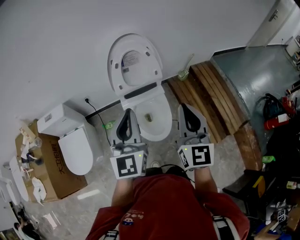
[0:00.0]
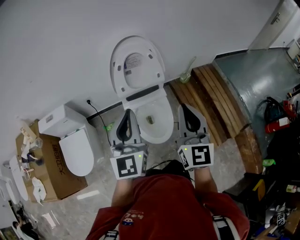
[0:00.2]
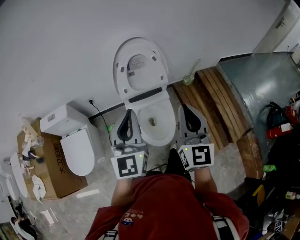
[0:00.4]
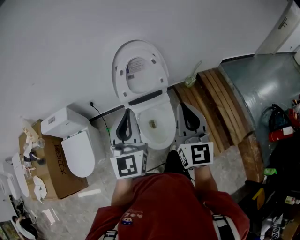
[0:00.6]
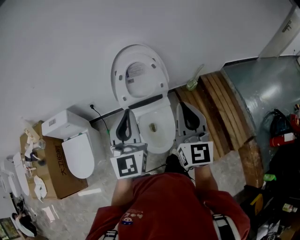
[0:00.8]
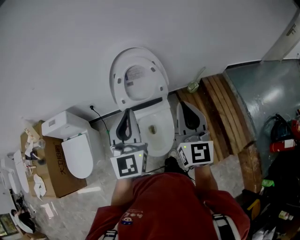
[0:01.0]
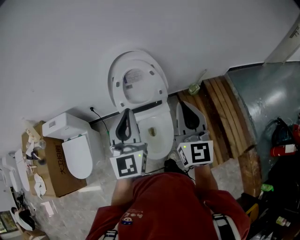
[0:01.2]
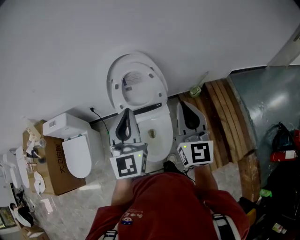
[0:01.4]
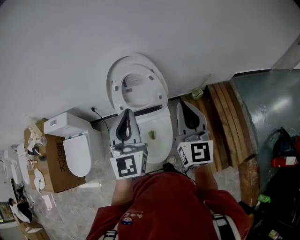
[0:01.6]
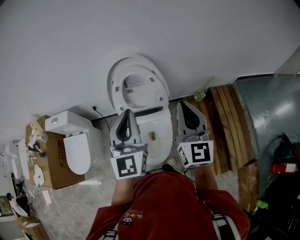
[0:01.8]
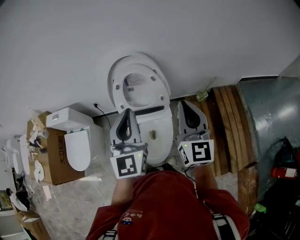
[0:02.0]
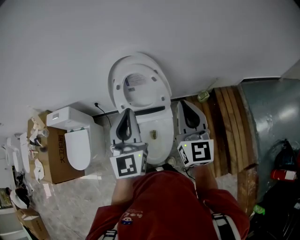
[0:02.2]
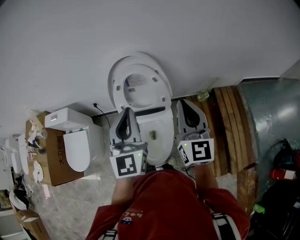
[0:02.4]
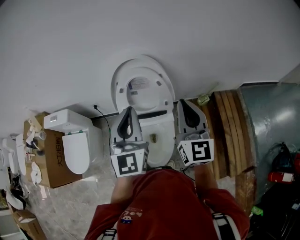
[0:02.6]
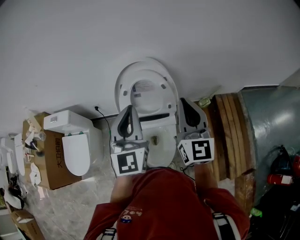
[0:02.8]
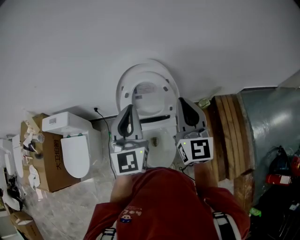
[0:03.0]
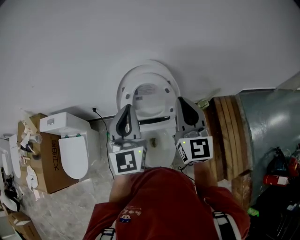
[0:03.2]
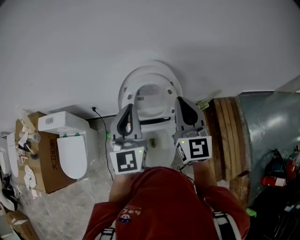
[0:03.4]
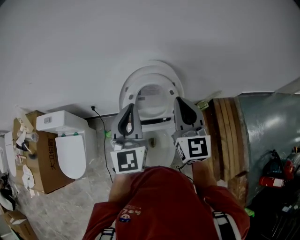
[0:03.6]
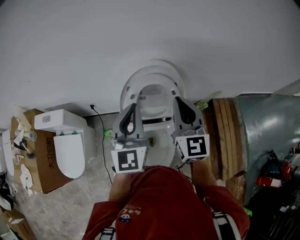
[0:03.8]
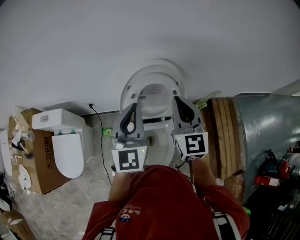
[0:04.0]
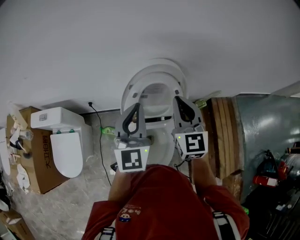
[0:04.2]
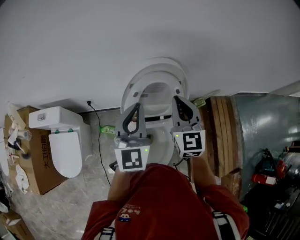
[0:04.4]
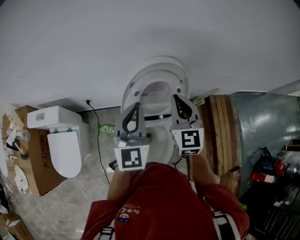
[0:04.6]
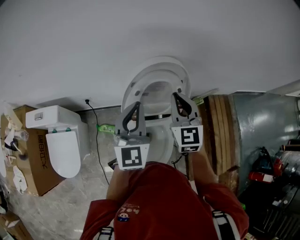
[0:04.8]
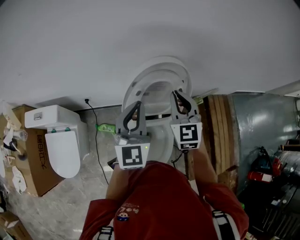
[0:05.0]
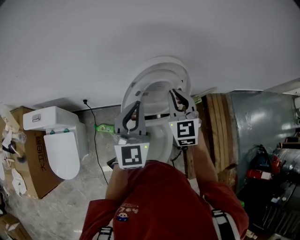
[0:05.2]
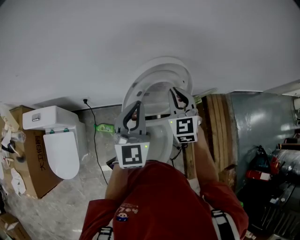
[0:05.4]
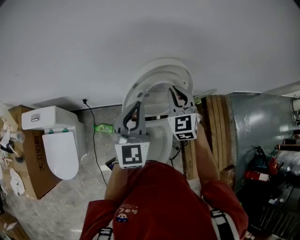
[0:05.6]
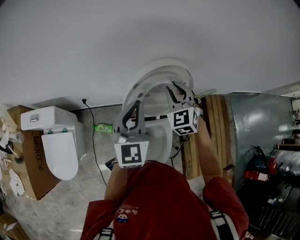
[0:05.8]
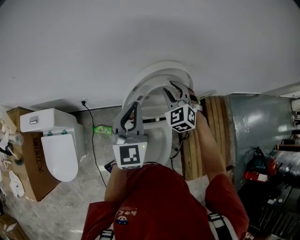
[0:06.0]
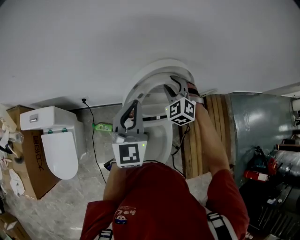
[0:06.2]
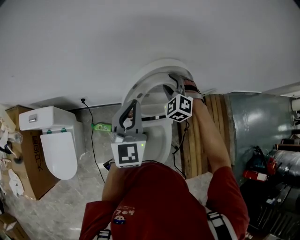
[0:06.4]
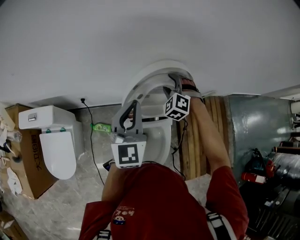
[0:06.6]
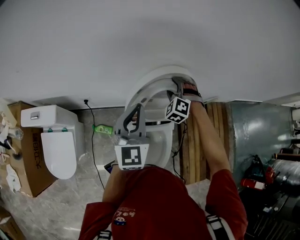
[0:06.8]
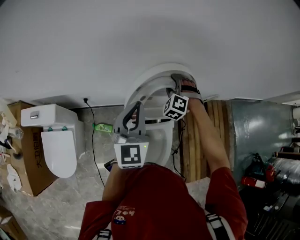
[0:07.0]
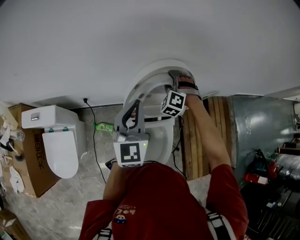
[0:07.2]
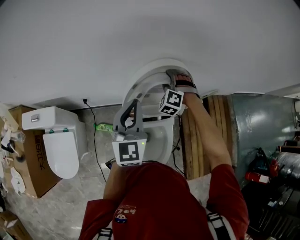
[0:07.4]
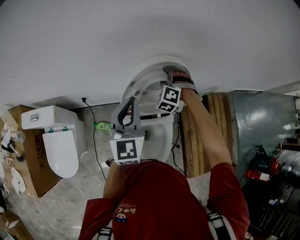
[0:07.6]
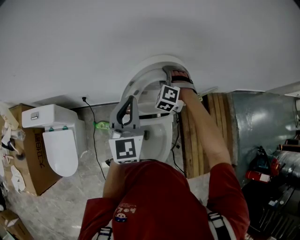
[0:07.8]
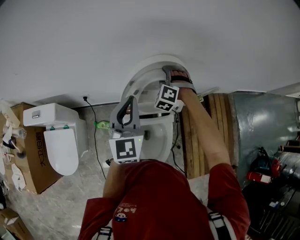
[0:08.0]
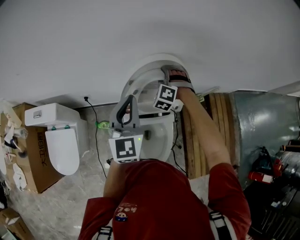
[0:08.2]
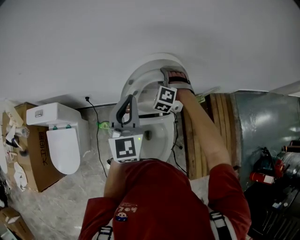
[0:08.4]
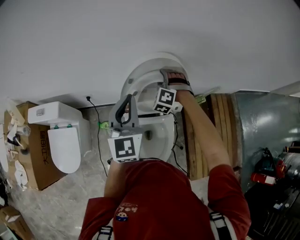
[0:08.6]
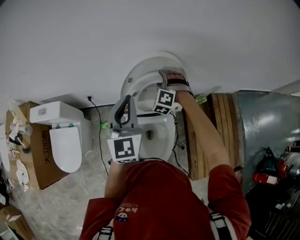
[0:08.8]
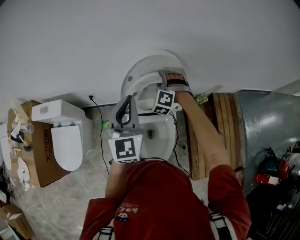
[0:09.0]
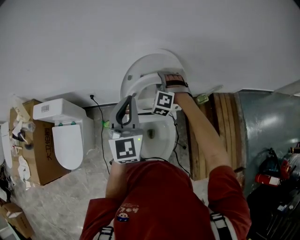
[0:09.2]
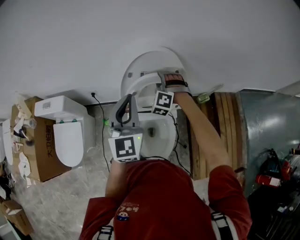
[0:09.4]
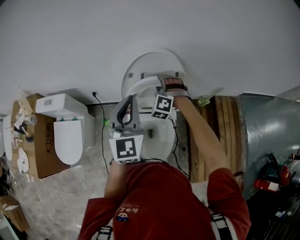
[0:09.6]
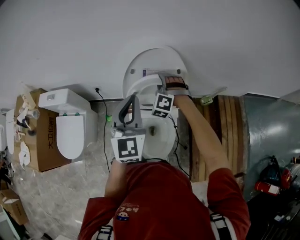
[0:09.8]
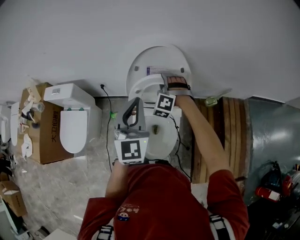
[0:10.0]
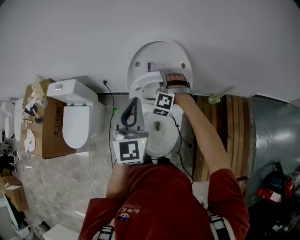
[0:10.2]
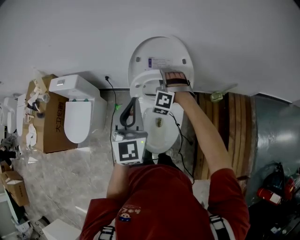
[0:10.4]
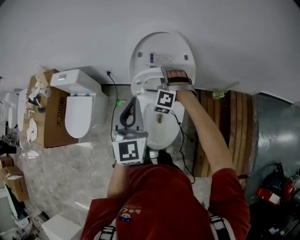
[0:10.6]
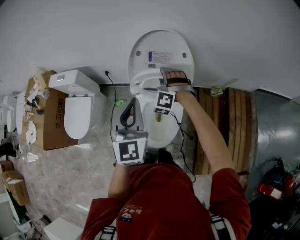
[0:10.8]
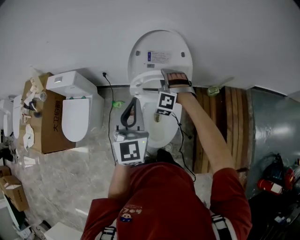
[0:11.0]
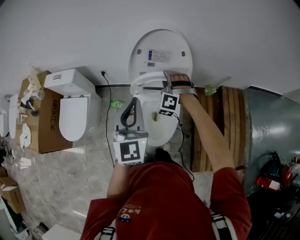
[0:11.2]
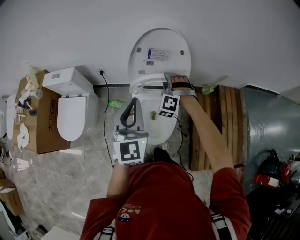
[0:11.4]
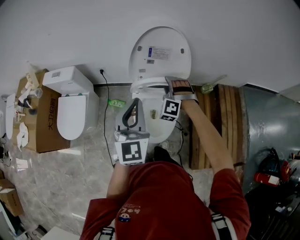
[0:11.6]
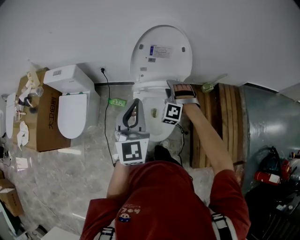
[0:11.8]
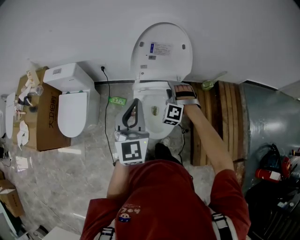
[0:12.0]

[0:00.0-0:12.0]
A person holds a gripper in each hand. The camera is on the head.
0:00.0 to 0:01.6: The two grippers go approximately 20 cm forward and to the right.
0:01.6 to 0:03.0: Both grippers move forward and to the left, about 15 cm.
0:03.0 to 0:04.4: The left gripper is displaced to the left and forward by some 10 cm, while the right gripper moves to the left, forward and downward, some 15 cm.
0:04.4 to 0:06.0: The right gripper goes approximately 15 cm forward and downward, swivels about 40 degrees, and opens its fingers. The left gripper shifts by about 10 cm.
0:06.0 to 0:07.6: The right gripper shifts some 10 cm downward and forward, swivels some 30 degrees, and opens up.
0:07.6 to 0:09.0: The grippers both shift backward by about 5 cm.
0:09.0 to 0:10.4: The left gripper is displaced backward and to the right by approximately 15 cm, while the right gripper travels backward by some 10 cm.
0:10.4 to 0:12.0: The right gripper goes roughly 15 cm backward. The left gripper goes approximately 15 cm backward and to the left.

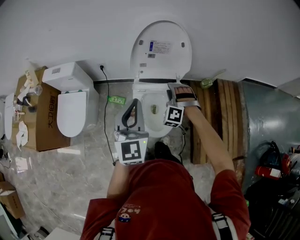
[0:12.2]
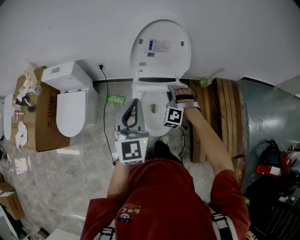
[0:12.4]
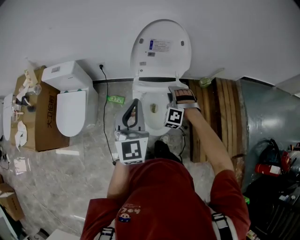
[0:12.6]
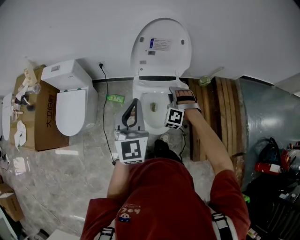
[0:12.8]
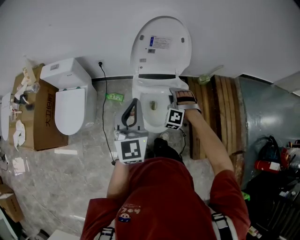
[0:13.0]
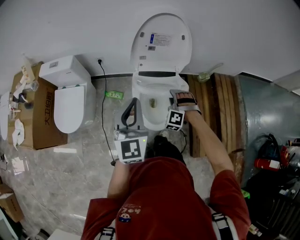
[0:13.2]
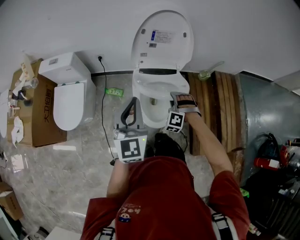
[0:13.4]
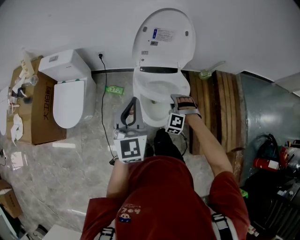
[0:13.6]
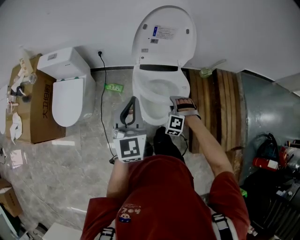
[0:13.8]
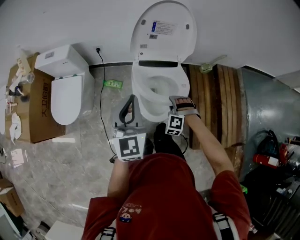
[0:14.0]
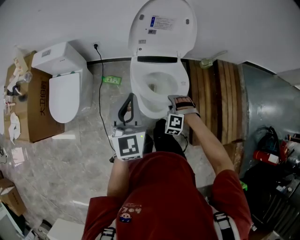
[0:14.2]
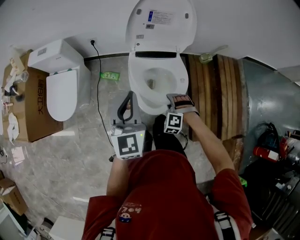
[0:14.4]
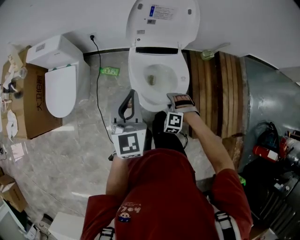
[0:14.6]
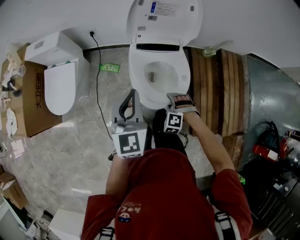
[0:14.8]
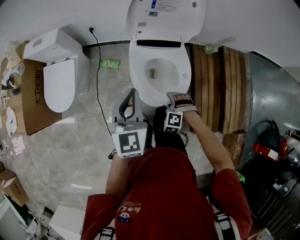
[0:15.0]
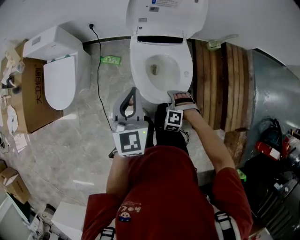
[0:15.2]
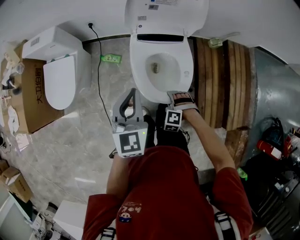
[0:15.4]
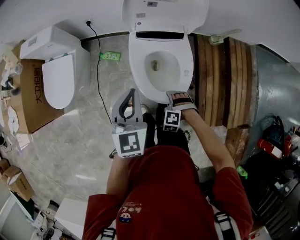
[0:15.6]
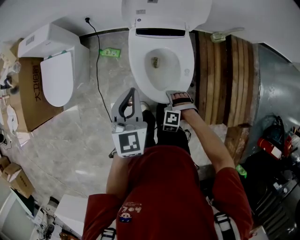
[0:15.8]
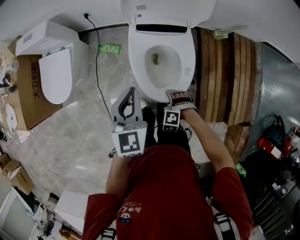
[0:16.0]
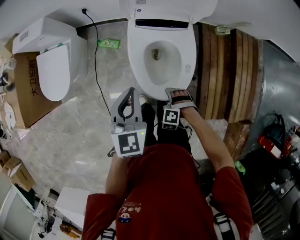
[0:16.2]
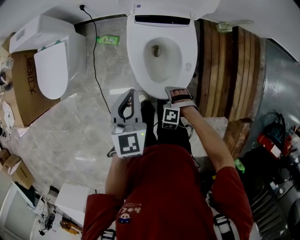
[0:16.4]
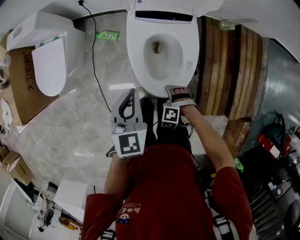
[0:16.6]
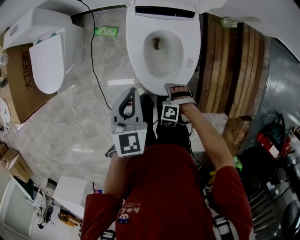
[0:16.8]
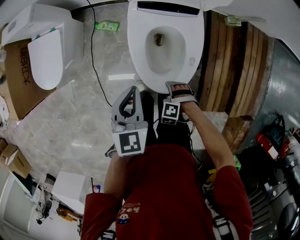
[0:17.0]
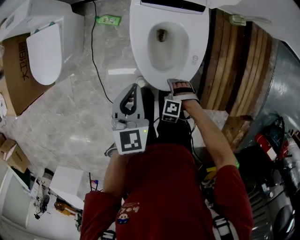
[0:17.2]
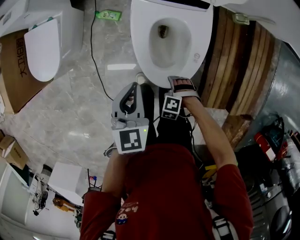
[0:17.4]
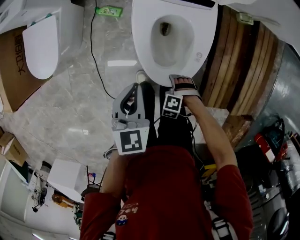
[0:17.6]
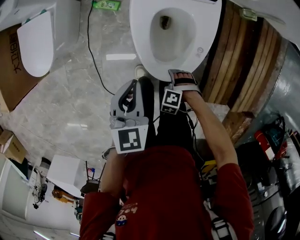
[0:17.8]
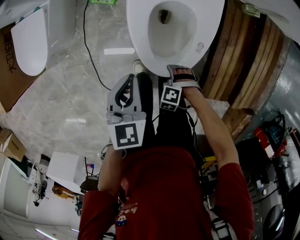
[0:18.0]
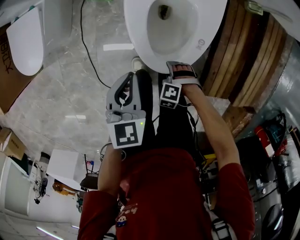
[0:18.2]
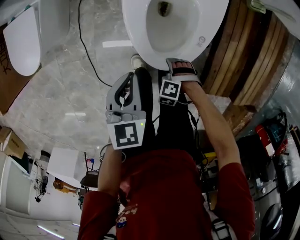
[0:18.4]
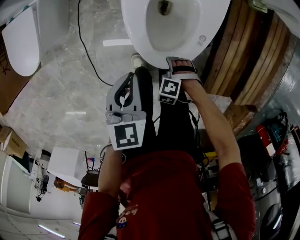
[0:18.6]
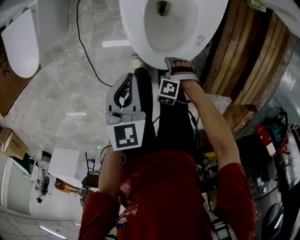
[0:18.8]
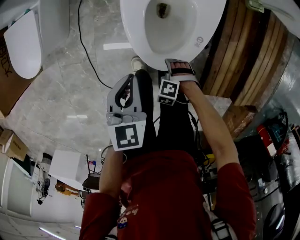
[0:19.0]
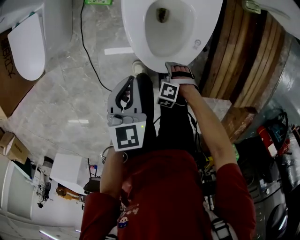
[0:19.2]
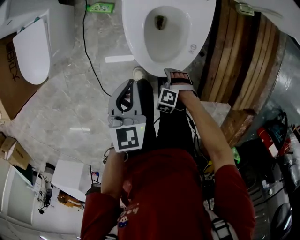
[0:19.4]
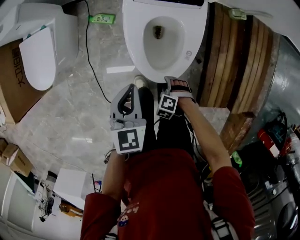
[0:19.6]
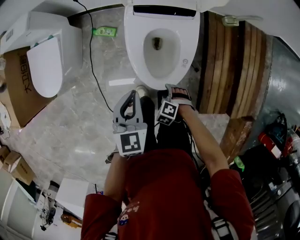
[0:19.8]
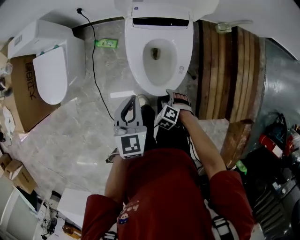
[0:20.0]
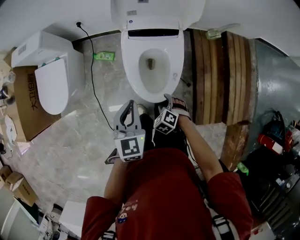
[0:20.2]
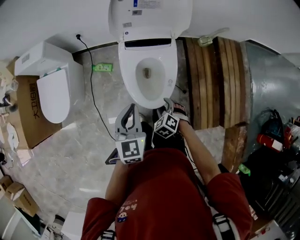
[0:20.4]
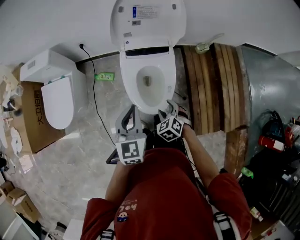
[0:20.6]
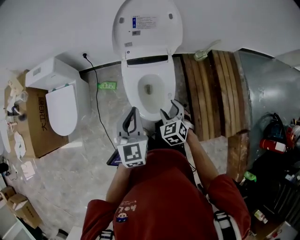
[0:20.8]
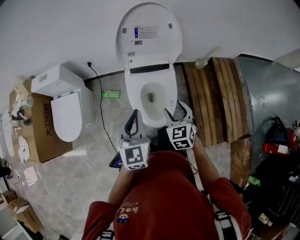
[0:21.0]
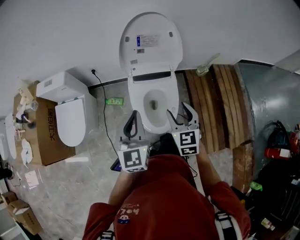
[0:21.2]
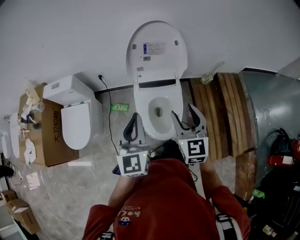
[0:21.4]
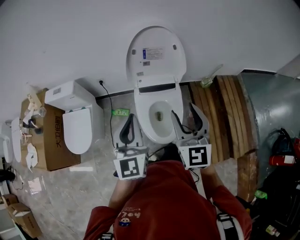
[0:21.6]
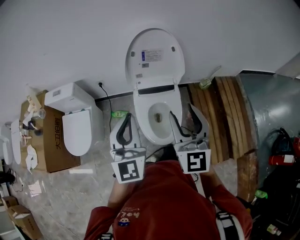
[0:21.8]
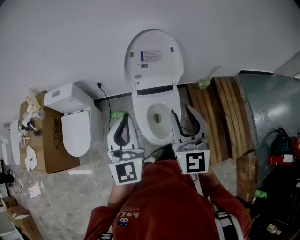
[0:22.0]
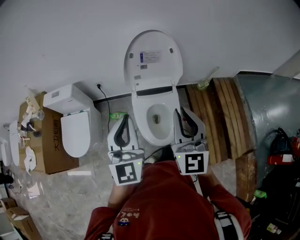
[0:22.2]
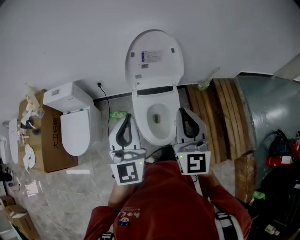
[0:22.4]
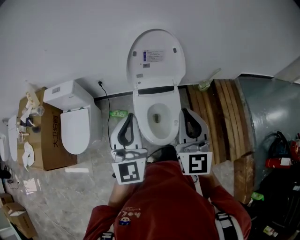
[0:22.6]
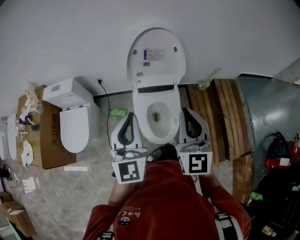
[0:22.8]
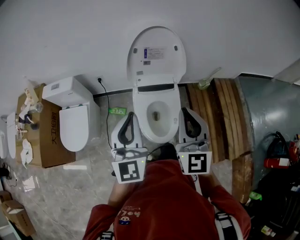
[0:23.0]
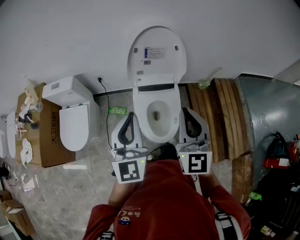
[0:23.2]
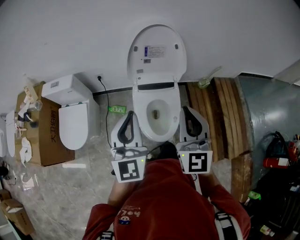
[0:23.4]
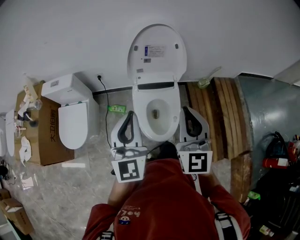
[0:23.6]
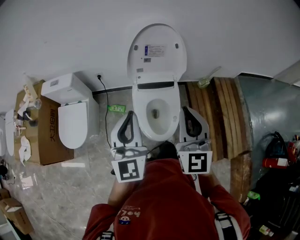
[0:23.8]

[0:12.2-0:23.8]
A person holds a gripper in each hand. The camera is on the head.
0:12.2 to 0:13.6: The right gripper is displaced backward and downward by about 15 cm, while the left gripper changes place by roughly 5 cm.
0:13.6 to 0:15.0: The right gripper goes about 15 cm downward and backward; the left gripper heads downward, covering about 10 cm.
0:15.0 to 0:16.6: The grippers both shift downward by roughly 10 cm.
0:16.6 to 0:18.0: The two grippers go roughly 10 cm downward.
0:18.0 to 0:19.4: The grippers make only small movements.
0:19.4 to 0:21.0: The right gripper moves upward, about 40 cm, and angles its fingers upward, by about 50 degrees, while the left gripper moves upward, some 25 cm, and changes its angle by some 30 degrees.
0:21.0 to 0:22.4: The left gripper is displaced upward by some 15 cm, and swivels about 20 degrees, while the right gripper is displaced upward by some 25 cm, tips its fingers upward by about 40 degrees, and closes its fingers.
0:22.4 to 0:23.8: There are only small adjustments of the grippers.
